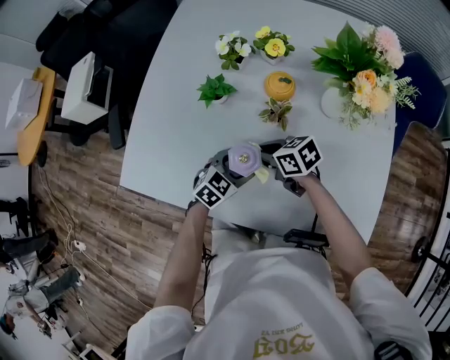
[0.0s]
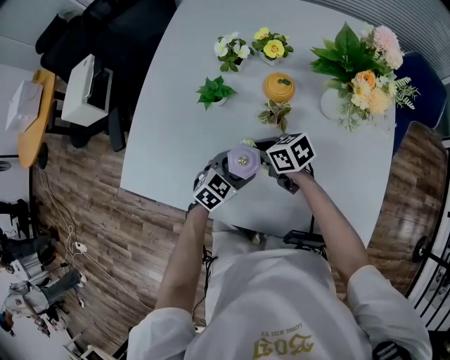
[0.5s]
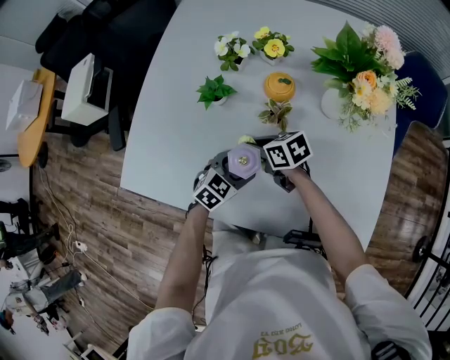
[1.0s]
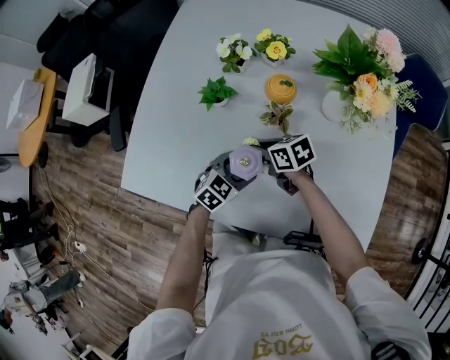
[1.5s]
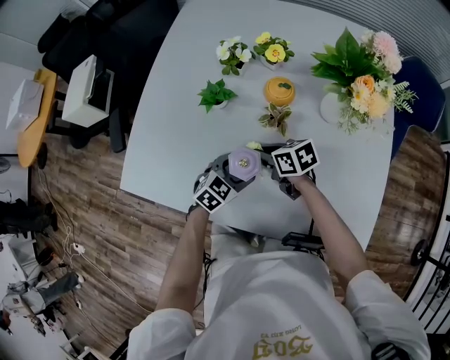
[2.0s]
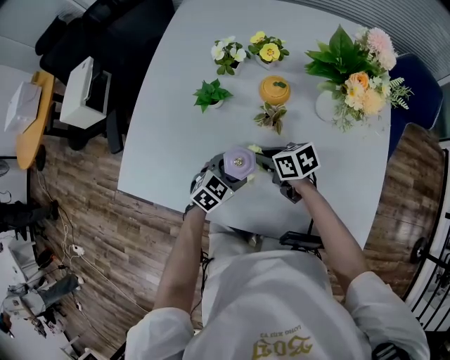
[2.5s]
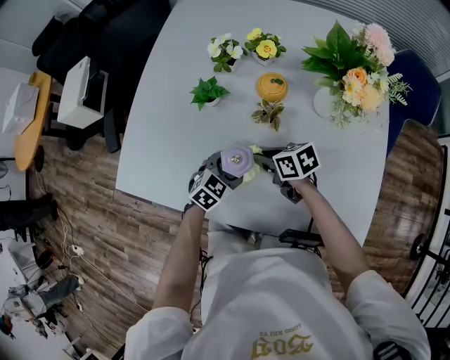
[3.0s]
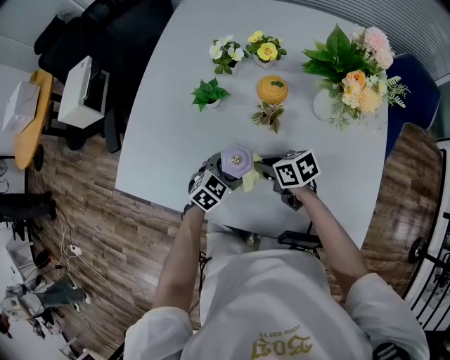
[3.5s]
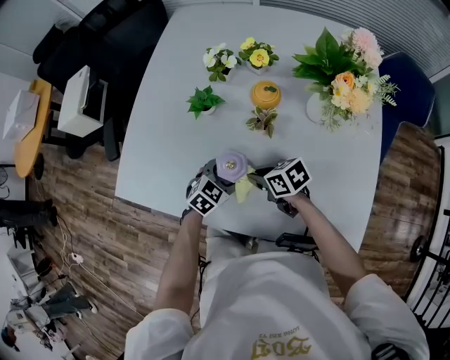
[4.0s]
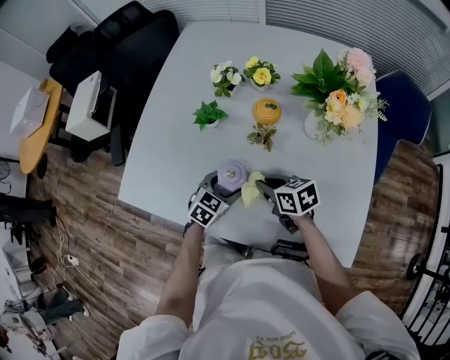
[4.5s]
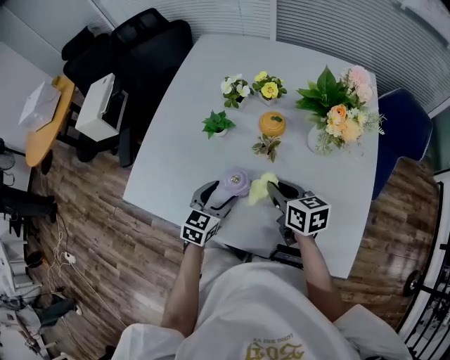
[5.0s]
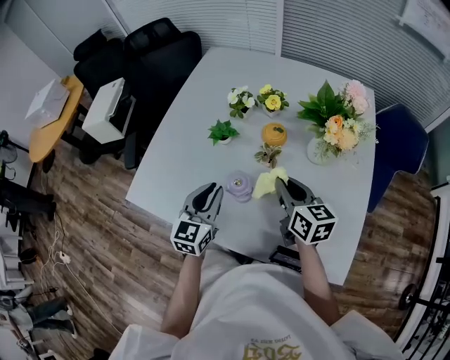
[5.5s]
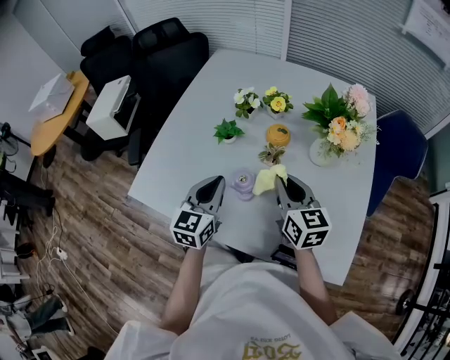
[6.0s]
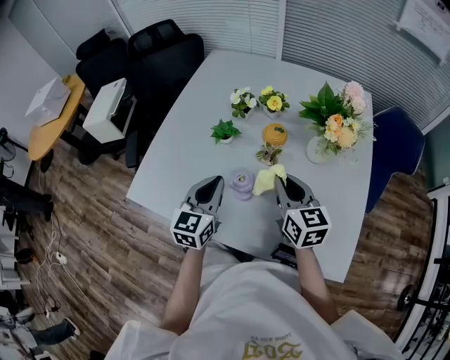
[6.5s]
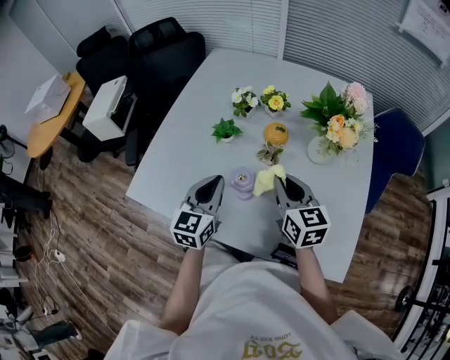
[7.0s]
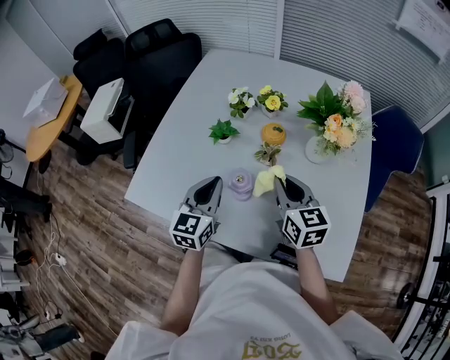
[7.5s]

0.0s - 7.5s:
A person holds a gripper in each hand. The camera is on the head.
0.0s - 2.0s: The grippers stay close to where they were, moving slightly.
2.0s - 4.0s: The right gripper ends up some 5 cm from where it was.
4.0s - 5.5s: Both grippers travel together upward, some 20 cm. The left gripper tilts its fingers approximately 30 degrees upward, and closes up, while the right gripper turns by approximately 40 degrees.
5.5s - 7.5s: The grippers make only small movements.

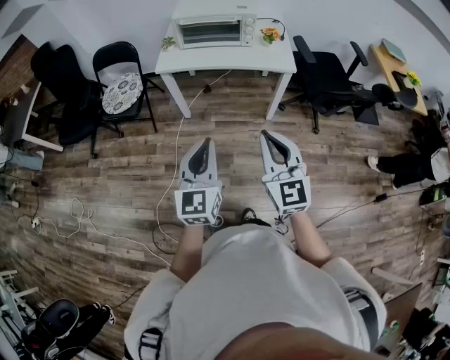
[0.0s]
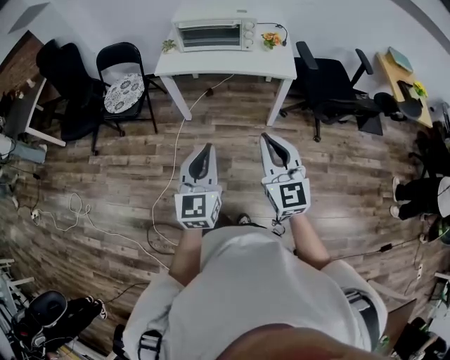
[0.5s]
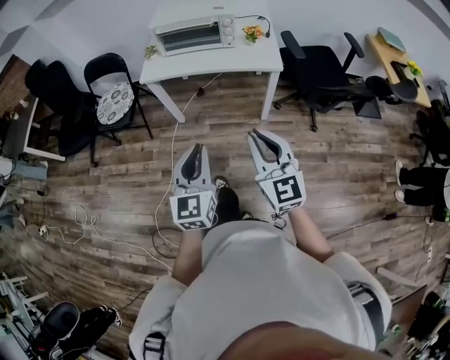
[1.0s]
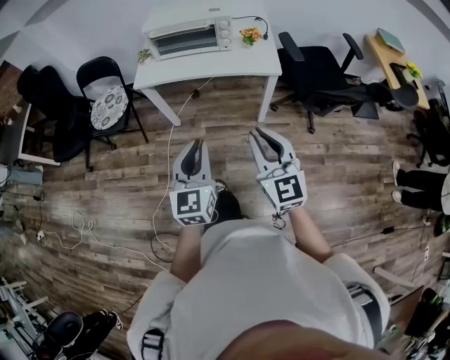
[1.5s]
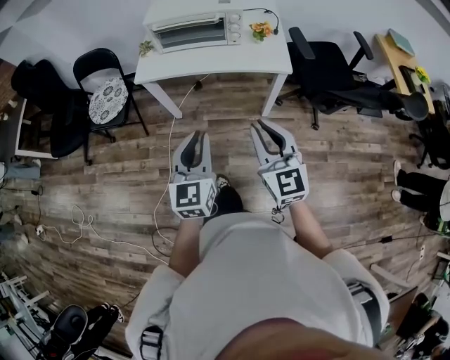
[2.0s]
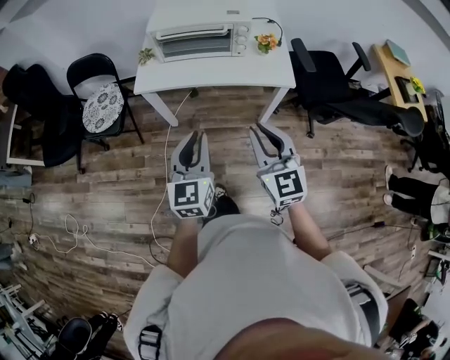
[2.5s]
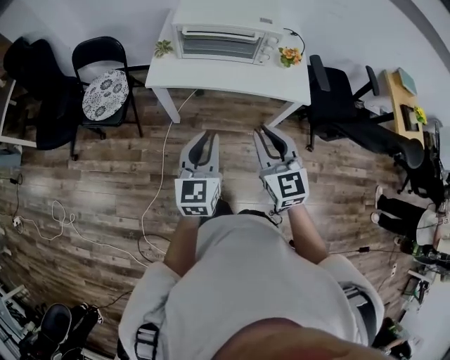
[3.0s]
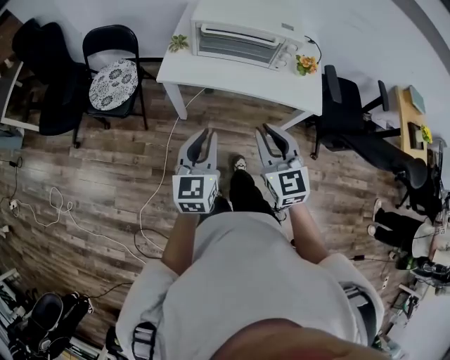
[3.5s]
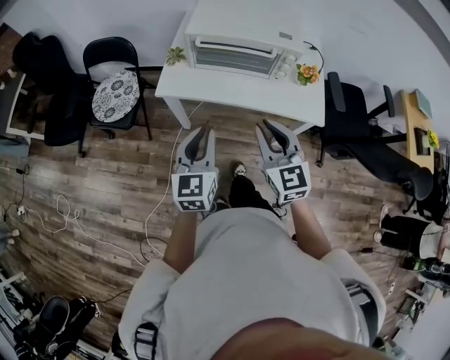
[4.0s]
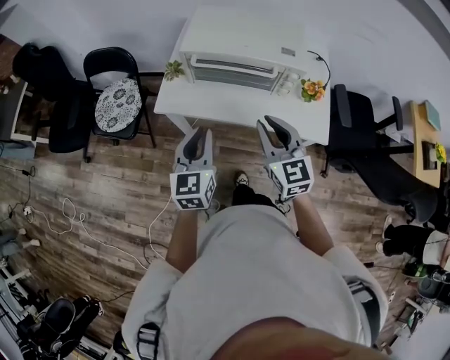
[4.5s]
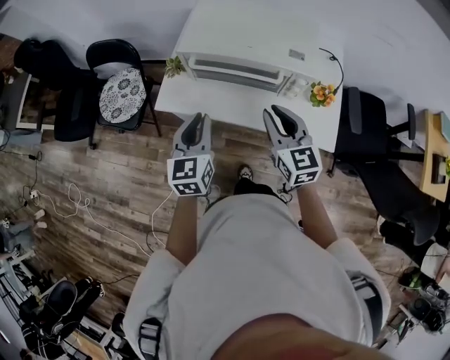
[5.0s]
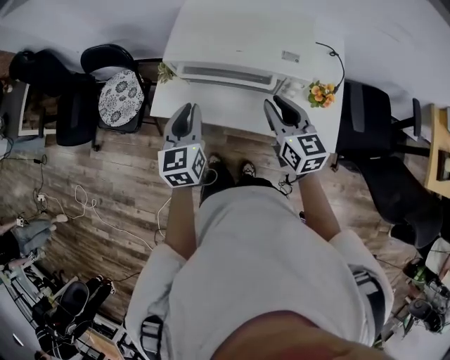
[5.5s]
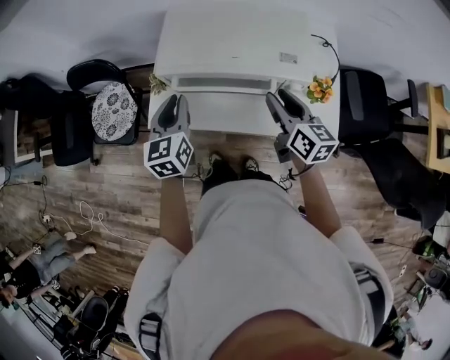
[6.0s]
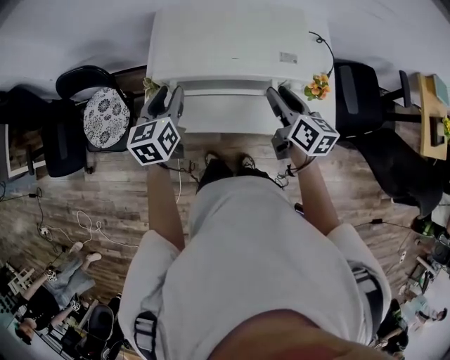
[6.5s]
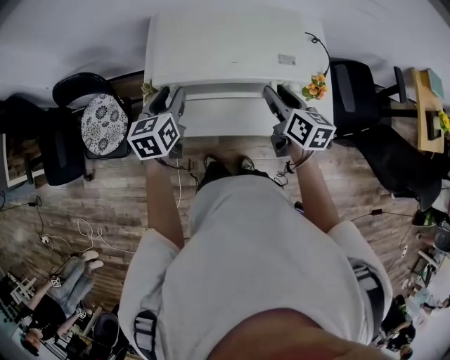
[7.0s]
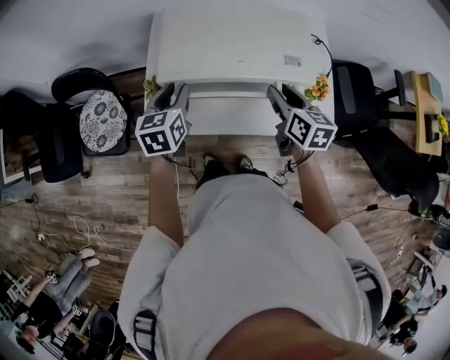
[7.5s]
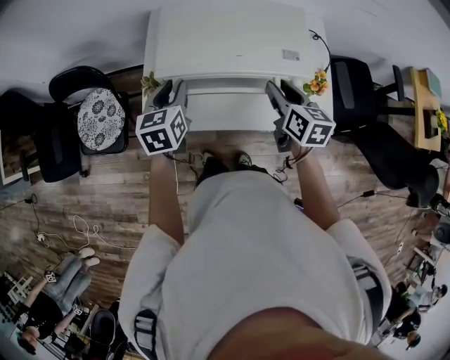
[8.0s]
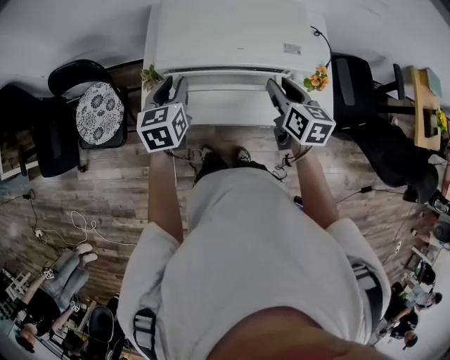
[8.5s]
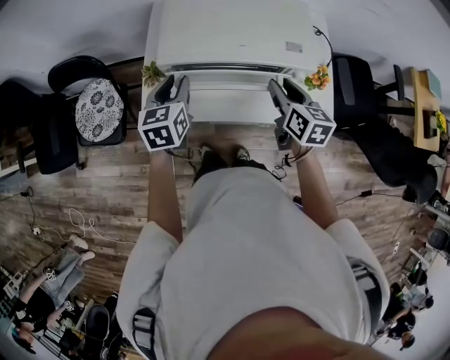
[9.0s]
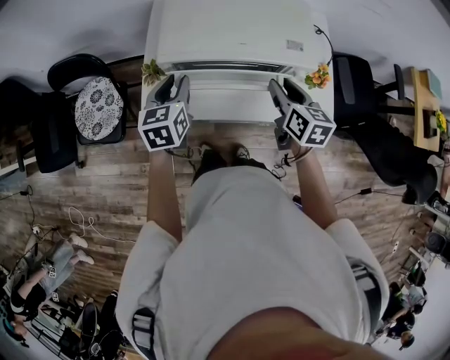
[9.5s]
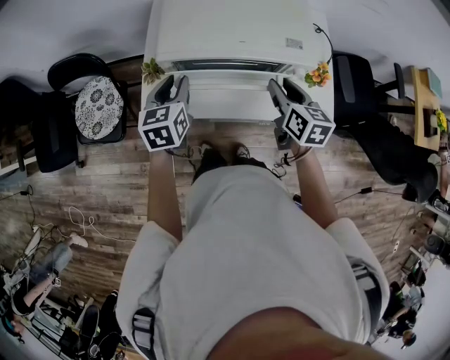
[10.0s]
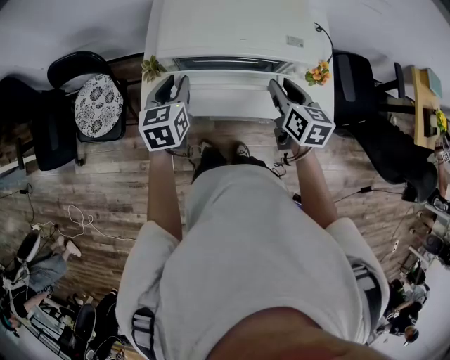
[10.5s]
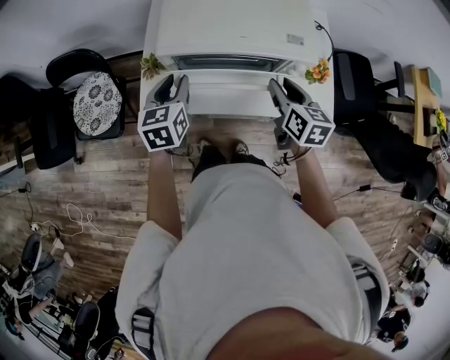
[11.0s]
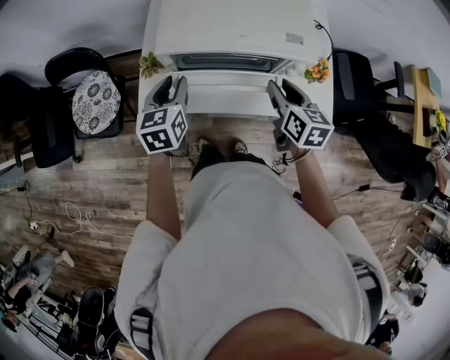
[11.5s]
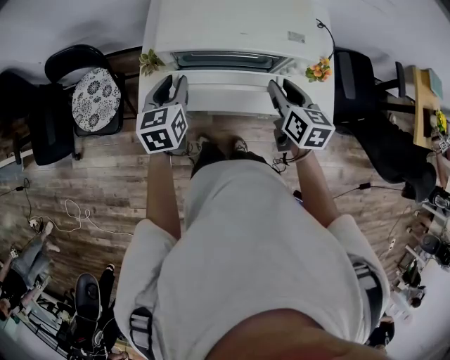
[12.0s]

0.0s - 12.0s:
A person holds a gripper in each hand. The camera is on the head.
0.0s - 2.0s: Both grippers travel together forward and to the right, some 15 cm.
2.0s - 4.0s: The right gripper is displaced forward by about 25 cm, while the left gripper is displaced forward and to the left by approximately 25 cm.
4.0s - 6.0s: The right gripper goes some 30 cm forward and to the right, rolls clockwise, seen from behind, by approximately 40 degrees, and opens. The left gripper moves forward, approximately 30 cm.
6.0s - 8.0s: The left gripper is displaced forward by about 5 cm.
8.0s - 12.0s: There are only small adjustments of the grippers.

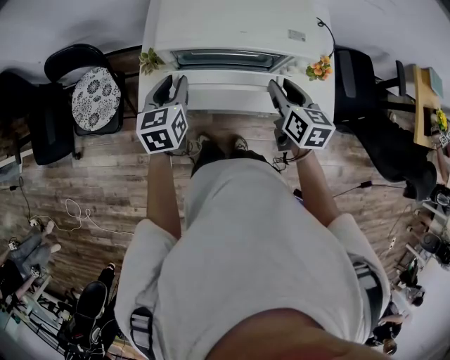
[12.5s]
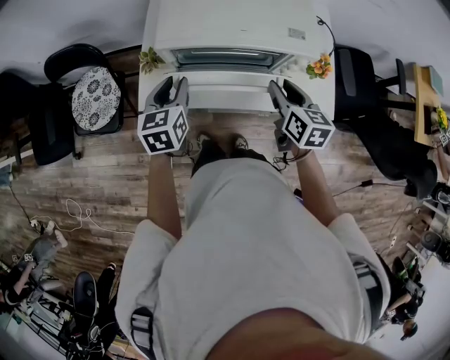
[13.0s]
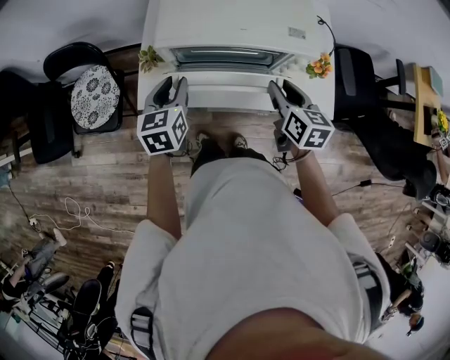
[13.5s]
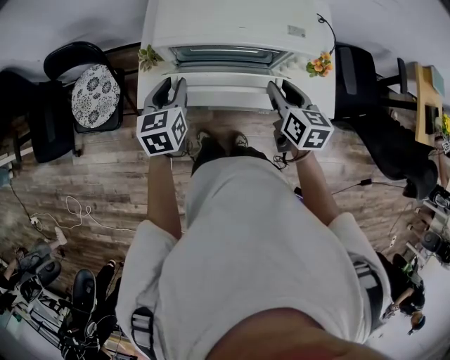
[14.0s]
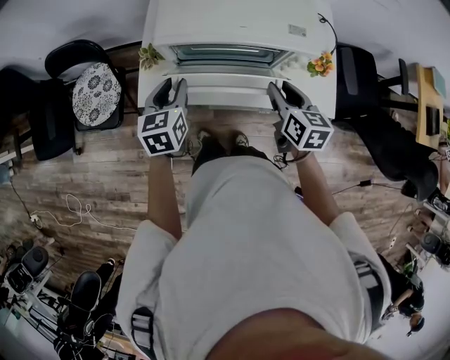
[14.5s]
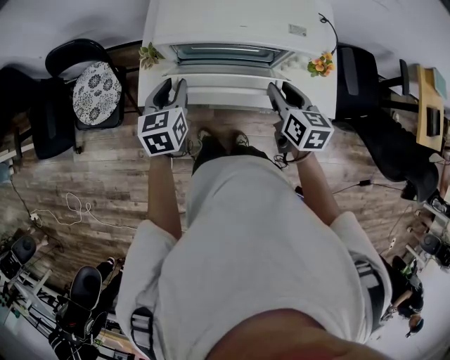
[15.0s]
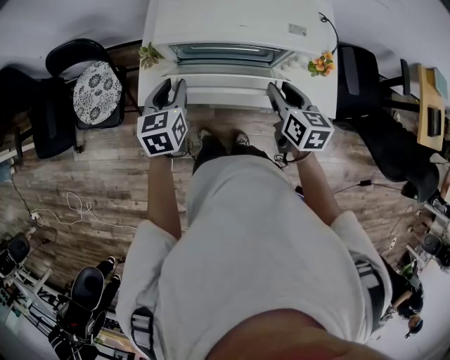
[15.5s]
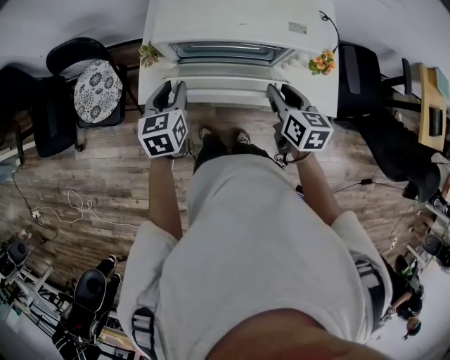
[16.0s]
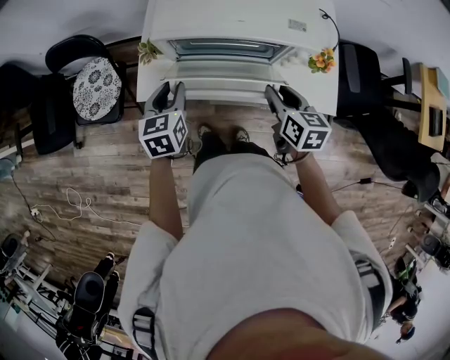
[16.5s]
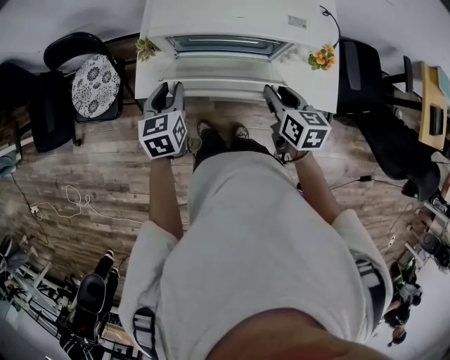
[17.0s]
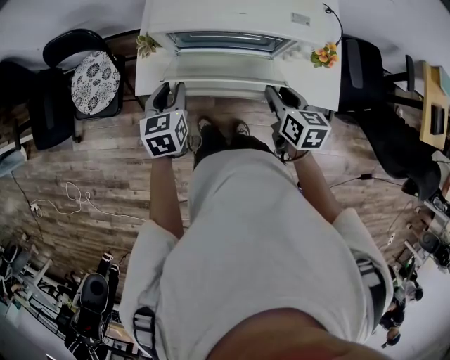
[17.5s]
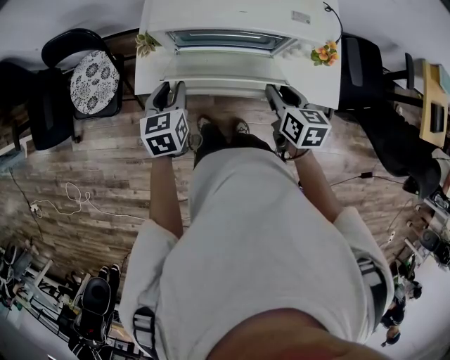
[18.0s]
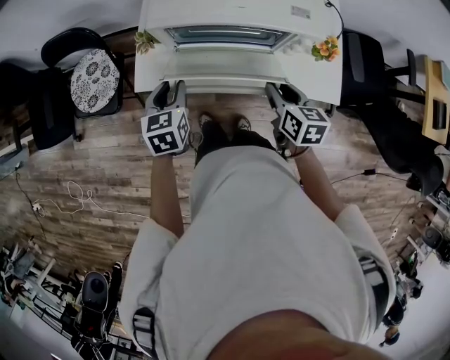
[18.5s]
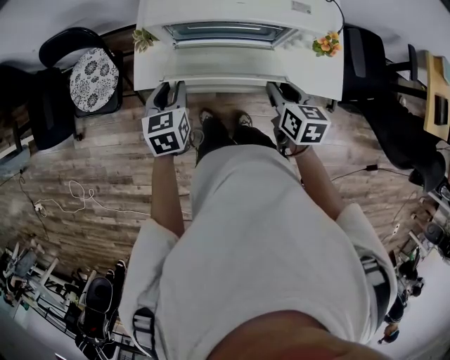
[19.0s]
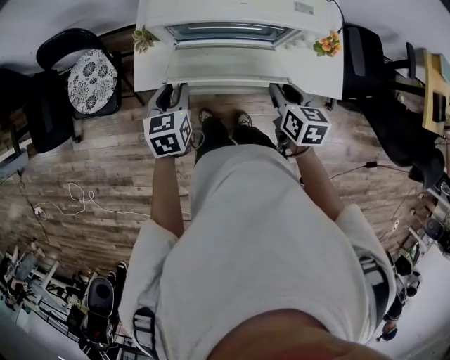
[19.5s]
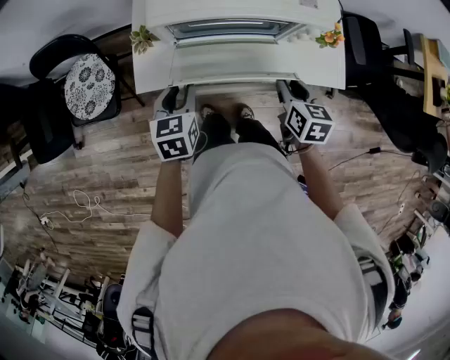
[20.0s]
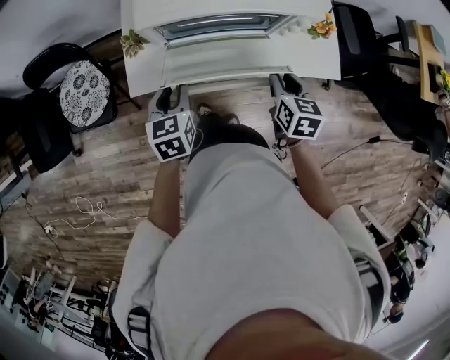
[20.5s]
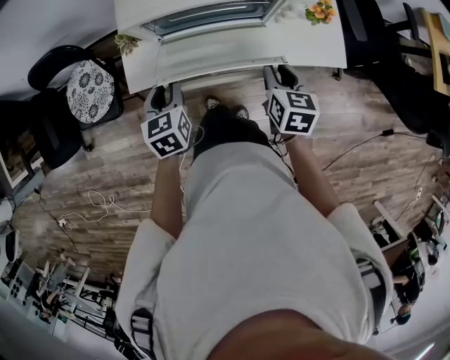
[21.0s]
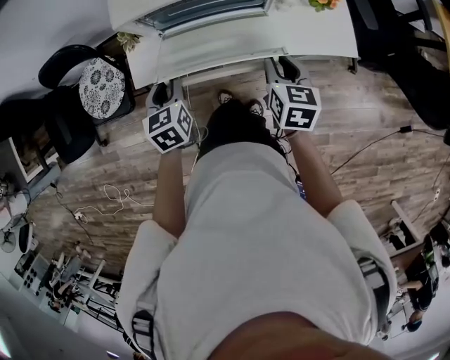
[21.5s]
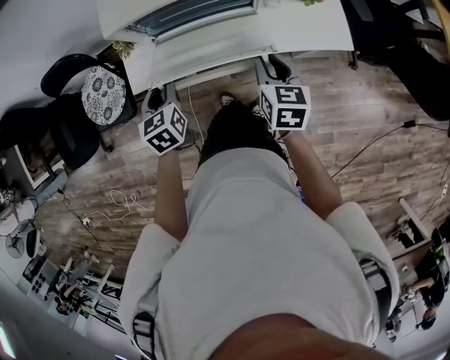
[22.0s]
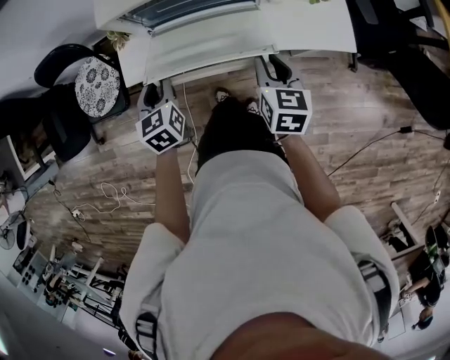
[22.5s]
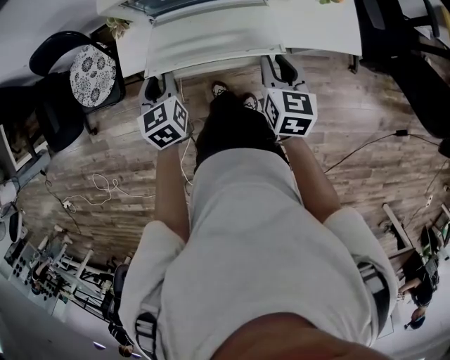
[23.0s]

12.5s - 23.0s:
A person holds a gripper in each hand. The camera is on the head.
12.5s - 16.5s: The grippers make only small movements.
16.5s - 21.0s: The grippers make only small movements.
21.0s - 23.0s: The grippers move only a little.
